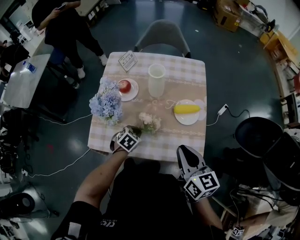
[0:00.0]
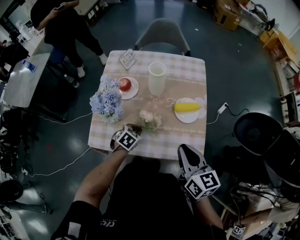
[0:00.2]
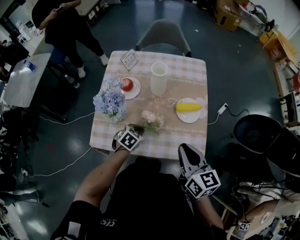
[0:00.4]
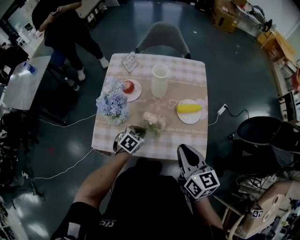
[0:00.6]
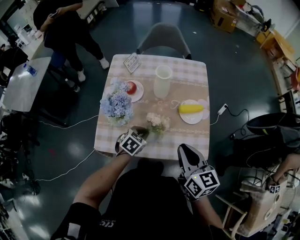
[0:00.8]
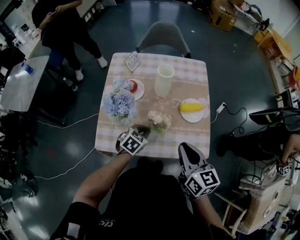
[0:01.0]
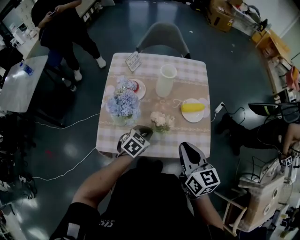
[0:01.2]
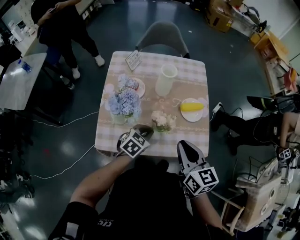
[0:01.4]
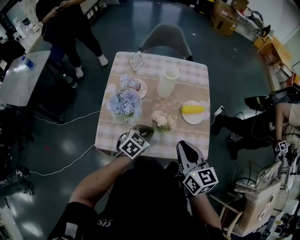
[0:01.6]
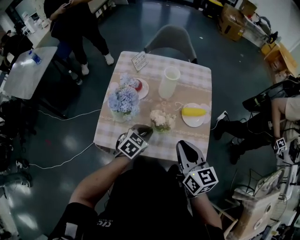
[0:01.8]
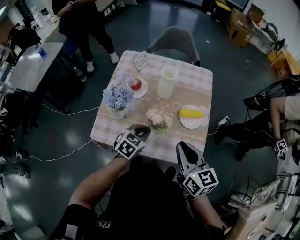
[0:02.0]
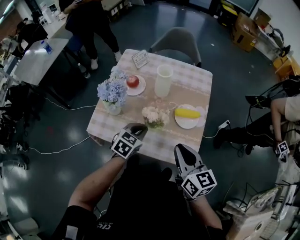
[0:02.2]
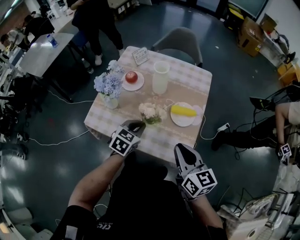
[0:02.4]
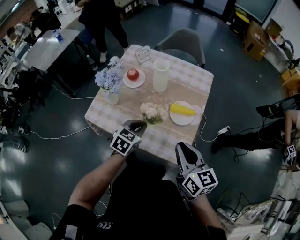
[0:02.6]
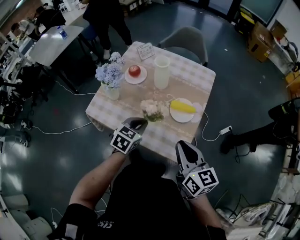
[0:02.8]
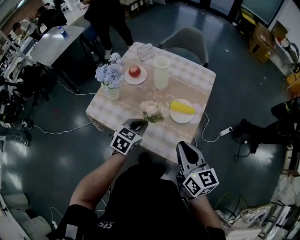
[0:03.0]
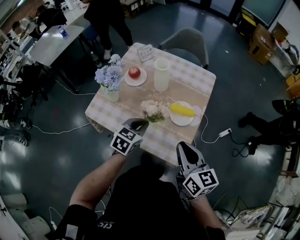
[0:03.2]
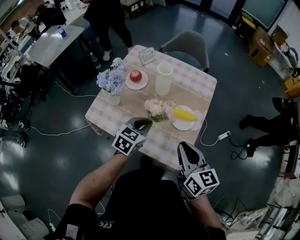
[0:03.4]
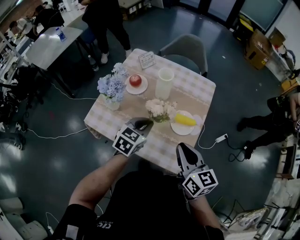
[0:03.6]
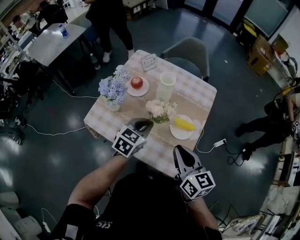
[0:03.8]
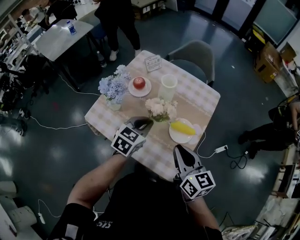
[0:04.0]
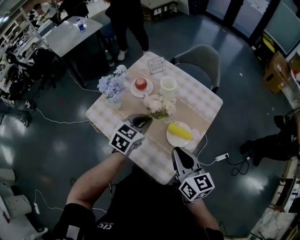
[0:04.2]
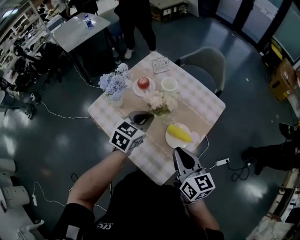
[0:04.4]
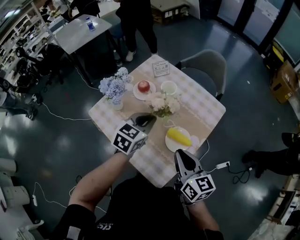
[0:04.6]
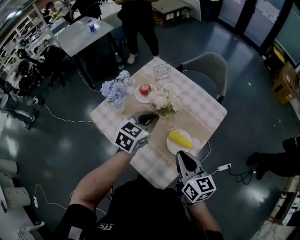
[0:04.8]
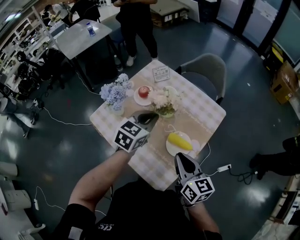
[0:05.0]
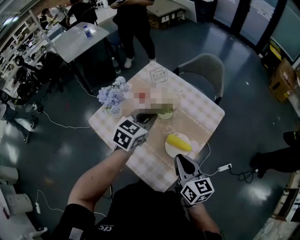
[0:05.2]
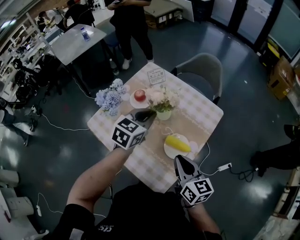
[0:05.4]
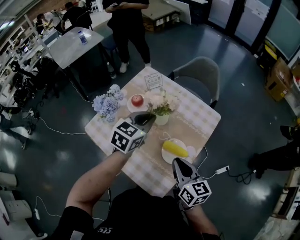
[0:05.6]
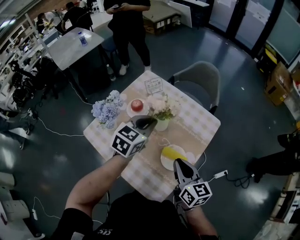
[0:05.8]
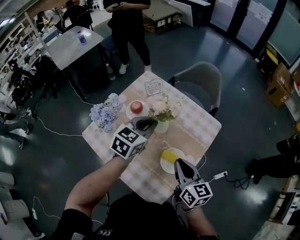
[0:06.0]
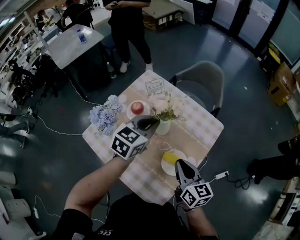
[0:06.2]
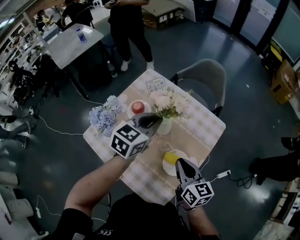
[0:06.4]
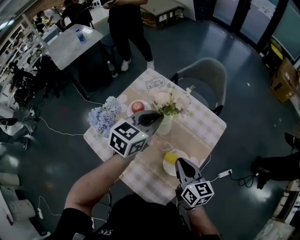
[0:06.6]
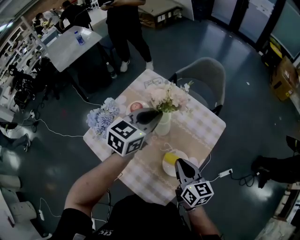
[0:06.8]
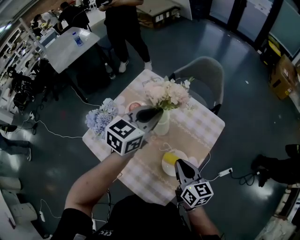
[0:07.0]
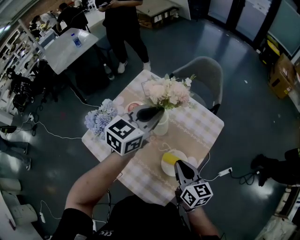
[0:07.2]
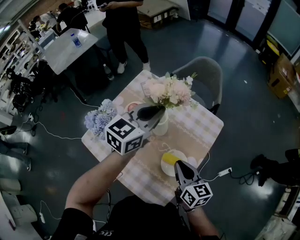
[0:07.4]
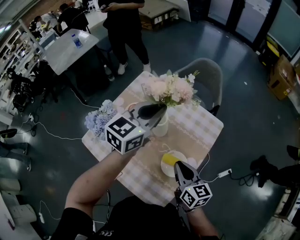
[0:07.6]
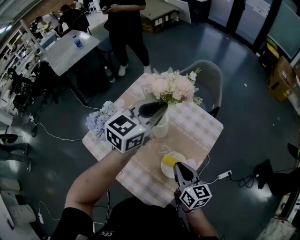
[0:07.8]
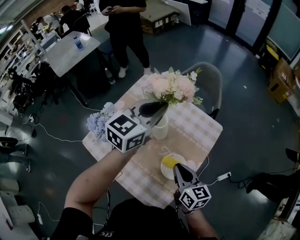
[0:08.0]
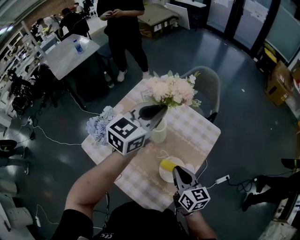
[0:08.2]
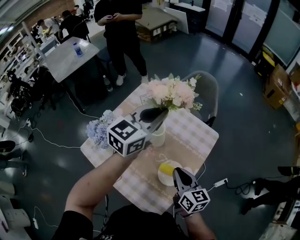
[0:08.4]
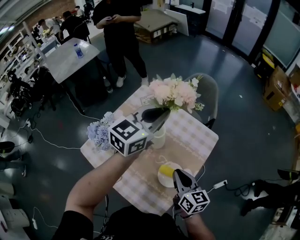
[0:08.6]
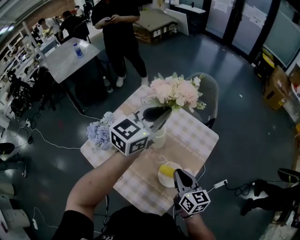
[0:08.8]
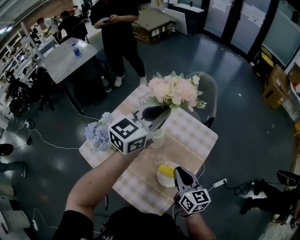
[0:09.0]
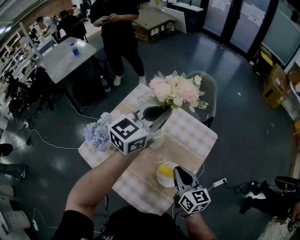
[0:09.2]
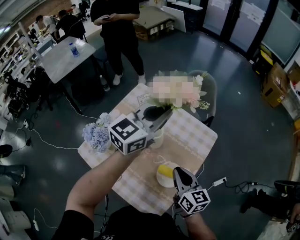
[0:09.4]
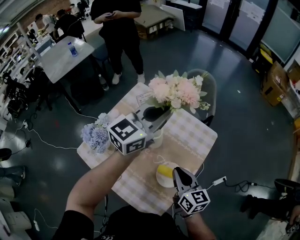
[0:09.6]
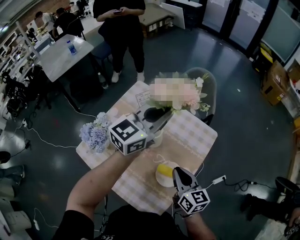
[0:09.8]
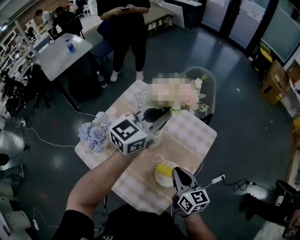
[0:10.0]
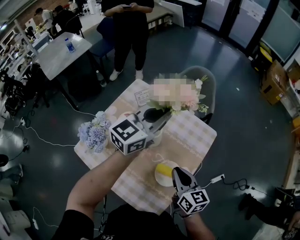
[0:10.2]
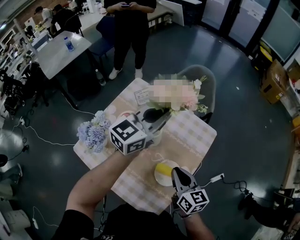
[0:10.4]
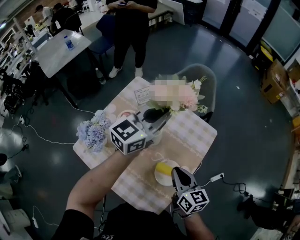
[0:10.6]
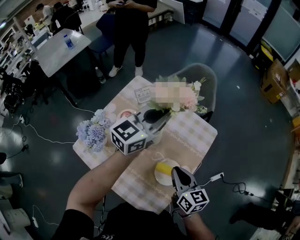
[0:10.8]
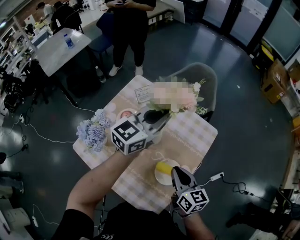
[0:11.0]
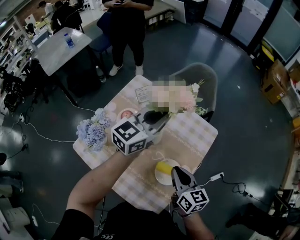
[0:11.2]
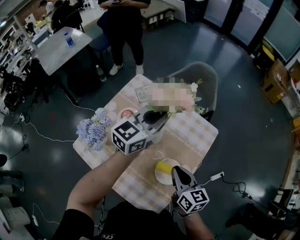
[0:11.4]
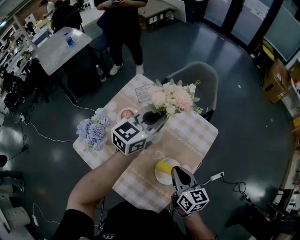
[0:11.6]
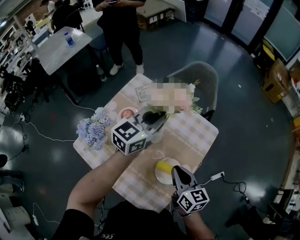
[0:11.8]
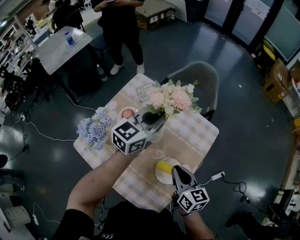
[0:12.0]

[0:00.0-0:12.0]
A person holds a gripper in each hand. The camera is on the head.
0:00.0 to 0:01.6: The left gripper goes roughly 10 cm upward, while the right gripper travels to the left by some 5 cm.
0:01.6 to 0:03.0: The right gripper ends up roughly 20 cm from where it was, and changes its angle by roughly 20 degrees; the left gripper moves roughly 15 cm, and turns by approximately 30 degrees.
0:03.0 to 0:04.4: The left gripper goes roughly 15 cm forward and upward, while the right gripper heads forward, covering approximately 10 cm.
0:04.4 to 0:06.0: The two grippers go some 10 cm forward.
0:06.0 to 0:07.6: The left gripper goes about 10 cm upward and forward.
0:07.6 to 0:09.0: The left gripper goes approximately 5 cm upward.
0:09.0 to 0:10.4: The left gripper changes place by roughly 5 cm.
0:10.4 to 0:12.0: The left gripper is displaced downward by about 5 cm.

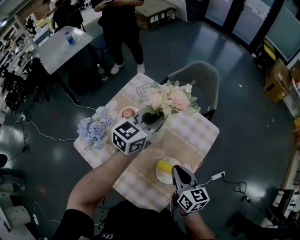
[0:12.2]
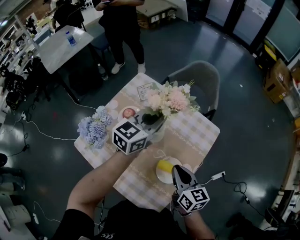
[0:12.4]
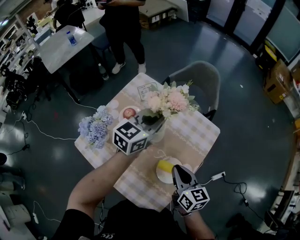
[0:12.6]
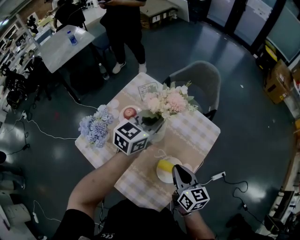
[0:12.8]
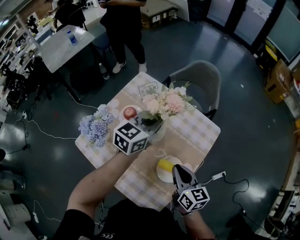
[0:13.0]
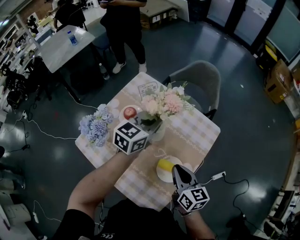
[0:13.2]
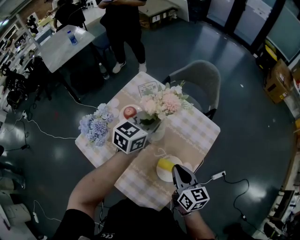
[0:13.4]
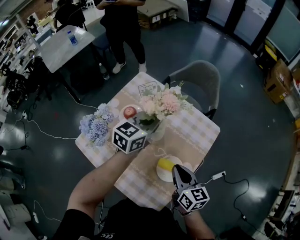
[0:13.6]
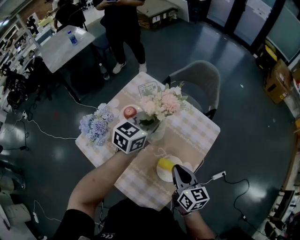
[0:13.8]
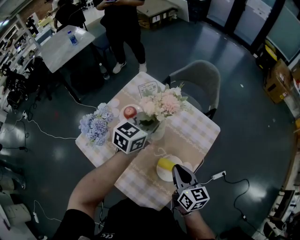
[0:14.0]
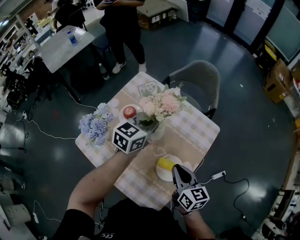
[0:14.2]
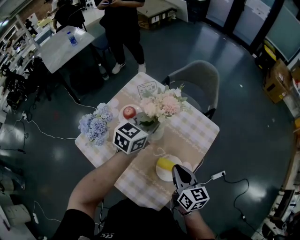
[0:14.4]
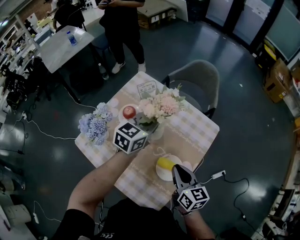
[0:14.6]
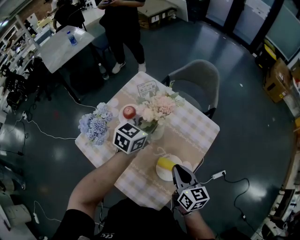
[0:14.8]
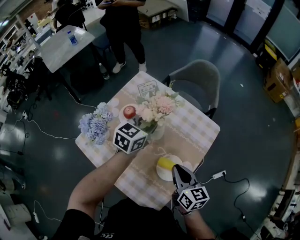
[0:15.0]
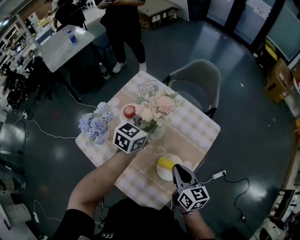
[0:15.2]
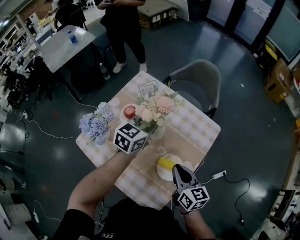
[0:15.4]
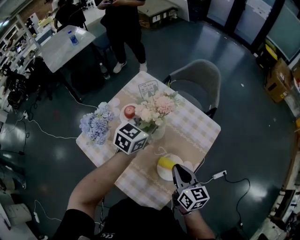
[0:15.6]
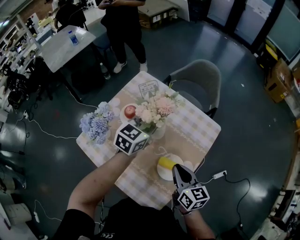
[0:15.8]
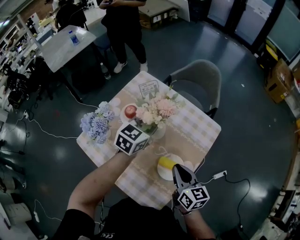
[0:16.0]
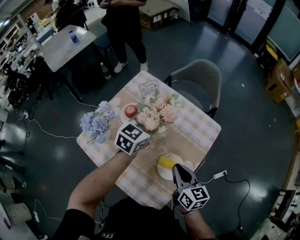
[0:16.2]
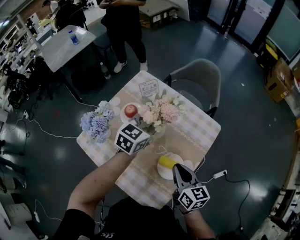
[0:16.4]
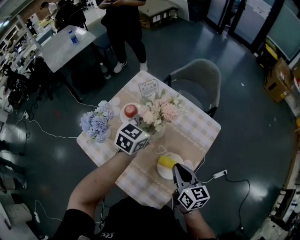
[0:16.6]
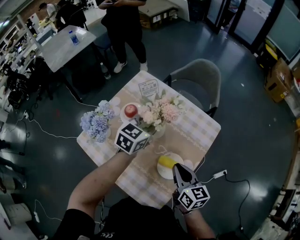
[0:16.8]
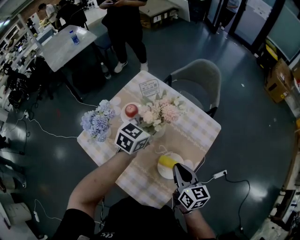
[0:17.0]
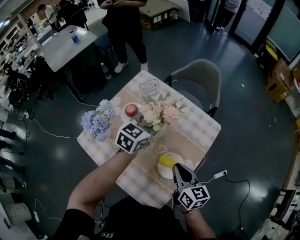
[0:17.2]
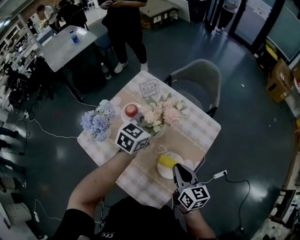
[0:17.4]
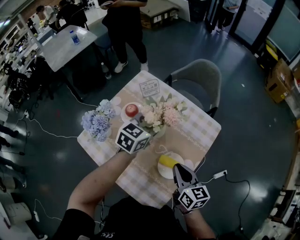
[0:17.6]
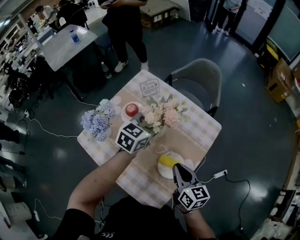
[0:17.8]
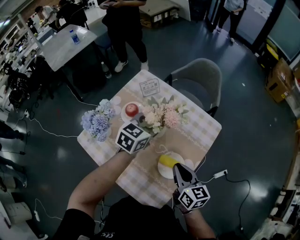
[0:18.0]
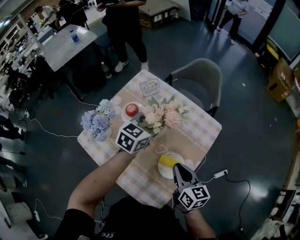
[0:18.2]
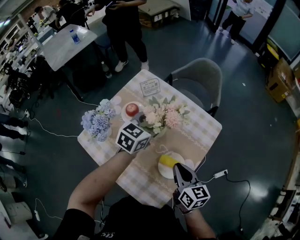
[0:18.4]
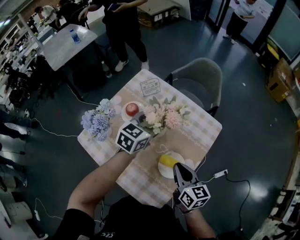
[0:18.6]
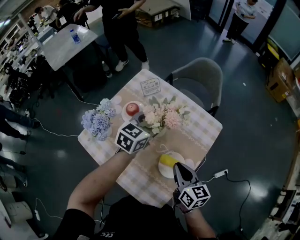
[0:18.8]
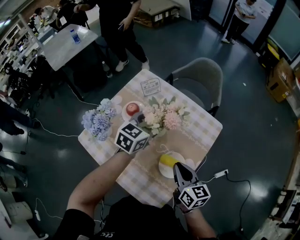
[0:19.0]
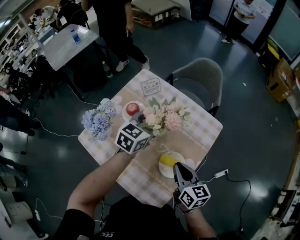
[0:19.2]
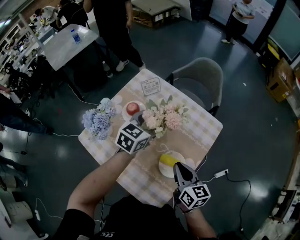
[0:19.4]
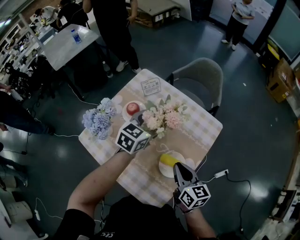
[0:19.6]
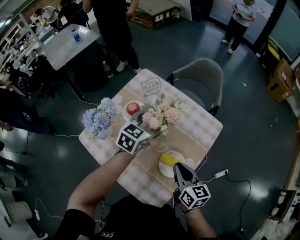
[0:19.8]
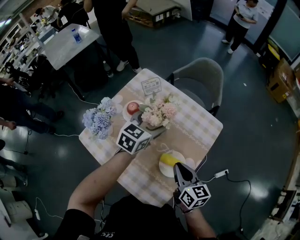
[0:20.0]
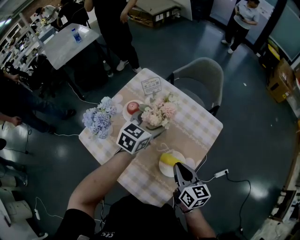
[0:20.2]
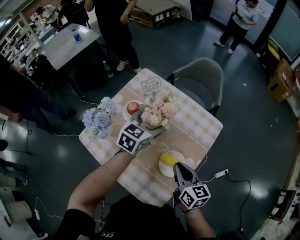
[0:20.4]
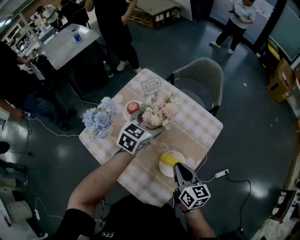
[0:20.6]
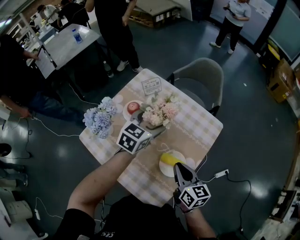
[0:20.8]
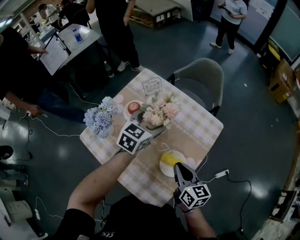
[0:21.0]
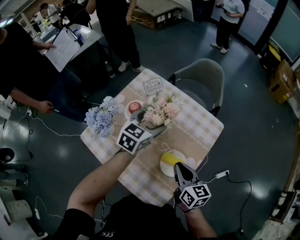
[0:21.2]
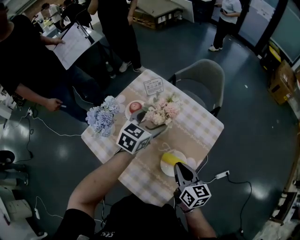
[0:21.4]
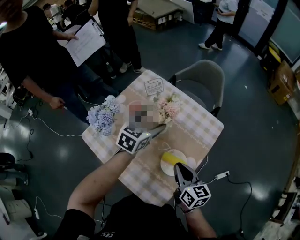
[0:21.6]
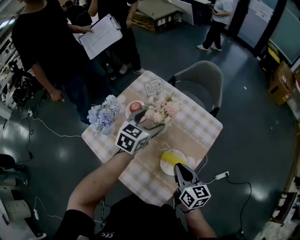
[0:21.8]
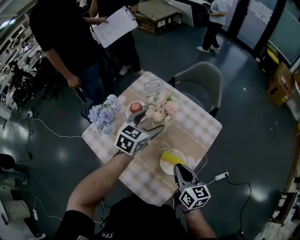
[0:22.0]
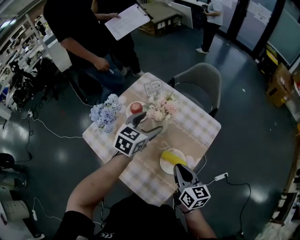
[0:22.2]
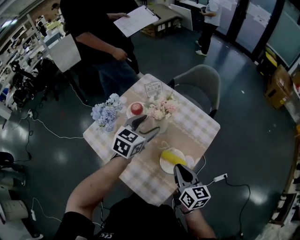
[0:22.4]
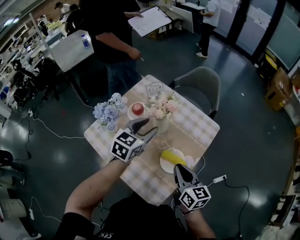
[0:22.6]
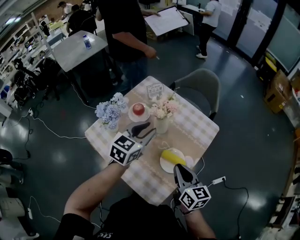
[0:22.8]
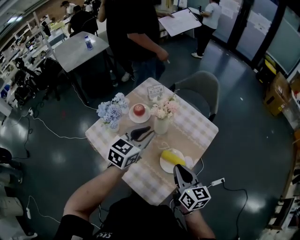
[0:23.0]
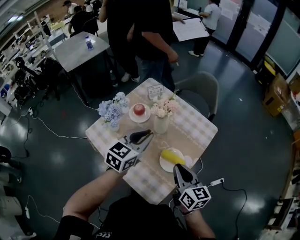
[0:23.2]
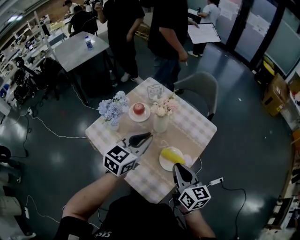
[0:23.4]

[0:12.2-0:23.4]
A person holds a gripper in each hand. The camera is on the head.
0:12.2 to 0:13.8: The grippers make only small movements.
0:13.8 to 0:15.4: The grippers move only a little.
0:15.4 to 0:17.0: Both grippers stay about where they are.
0:17.0 to 0:18.6: The left gripper opens.
0:18.6 to 0:20.2: The left gripper opens.
0:20.2 to 0:21.8: The grippers stay close to where they were, moving slightly.
0:21.8 to 0:23.4: The right gripper shifts roughly 10 cm upward and backward; the left gripper moves backward and upward, some 15 cm, and closes its fingers.

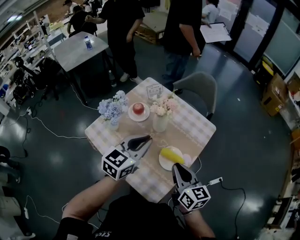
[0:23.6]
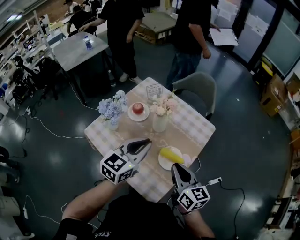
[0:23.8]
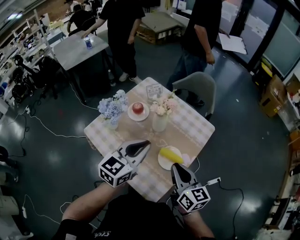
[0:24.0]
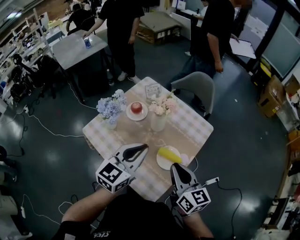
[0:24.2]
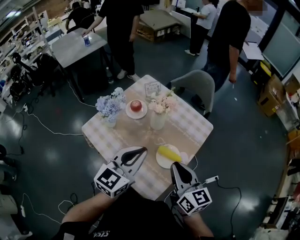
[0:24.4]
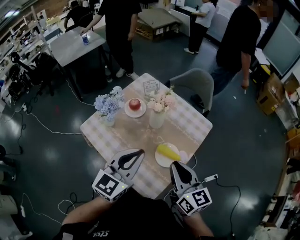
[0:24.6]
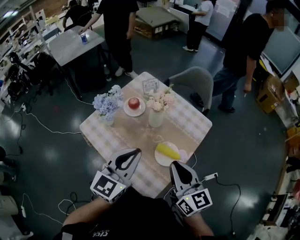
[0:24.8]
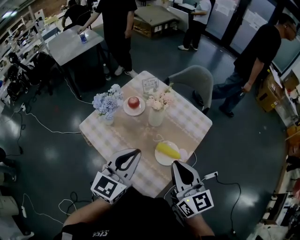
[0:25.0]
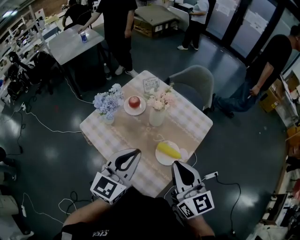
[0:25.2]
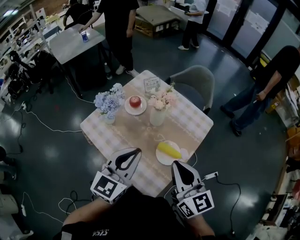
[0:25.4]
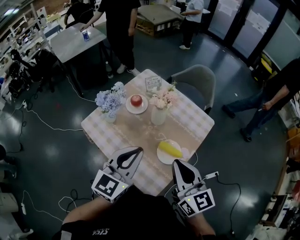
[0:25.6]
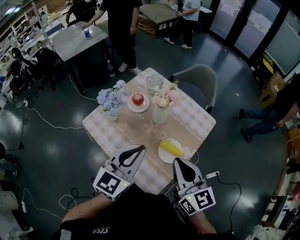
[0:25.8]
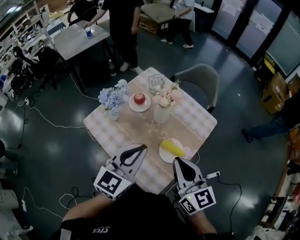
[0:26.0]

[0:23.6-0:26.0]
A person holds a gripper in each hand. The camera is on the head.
0:23.6 to 0:24.8: The left gripper goes about 5 cm backward, while the right gripper is displaced upward by approximately 5 cm.
0:24.8 to 0:26.0: The grippers move only a little.
